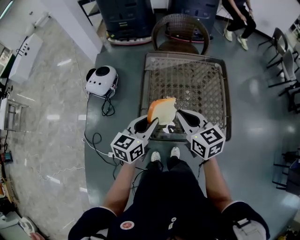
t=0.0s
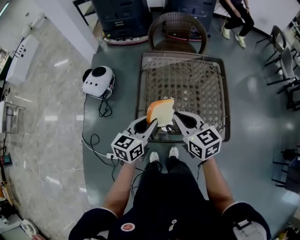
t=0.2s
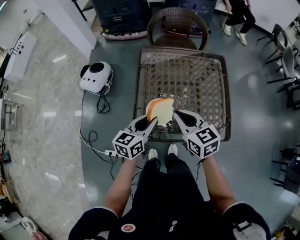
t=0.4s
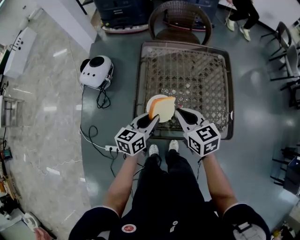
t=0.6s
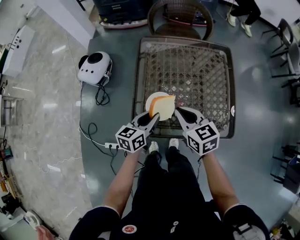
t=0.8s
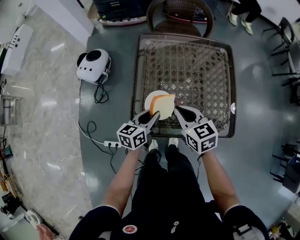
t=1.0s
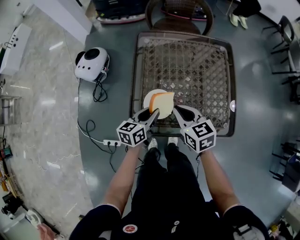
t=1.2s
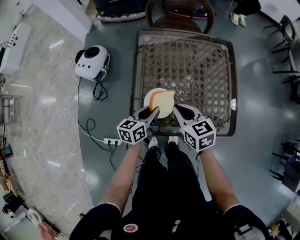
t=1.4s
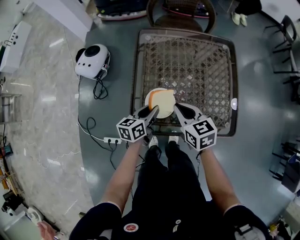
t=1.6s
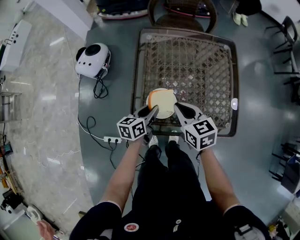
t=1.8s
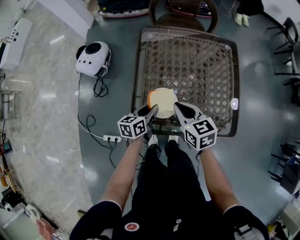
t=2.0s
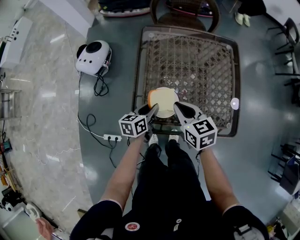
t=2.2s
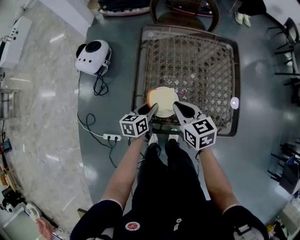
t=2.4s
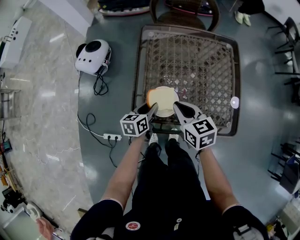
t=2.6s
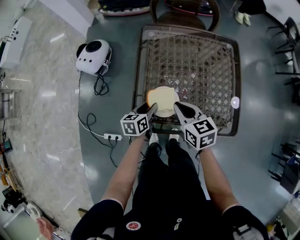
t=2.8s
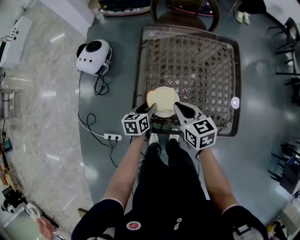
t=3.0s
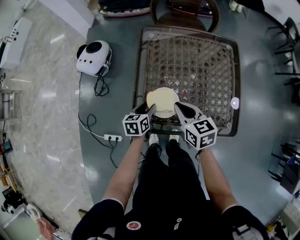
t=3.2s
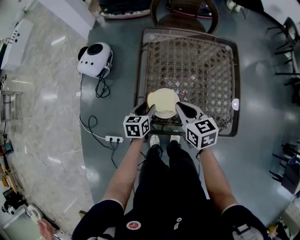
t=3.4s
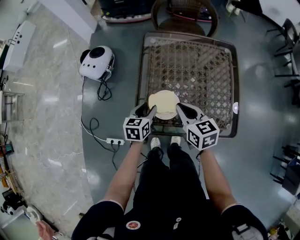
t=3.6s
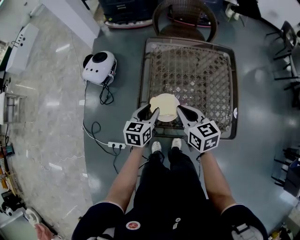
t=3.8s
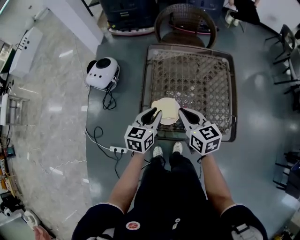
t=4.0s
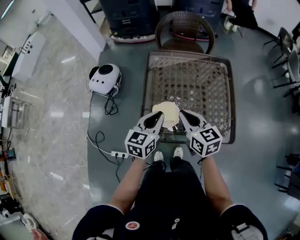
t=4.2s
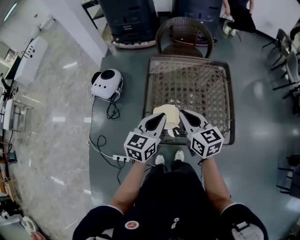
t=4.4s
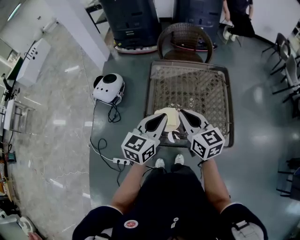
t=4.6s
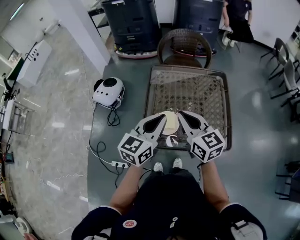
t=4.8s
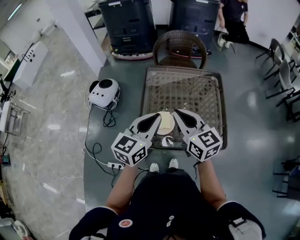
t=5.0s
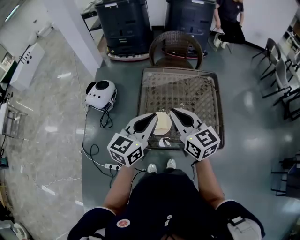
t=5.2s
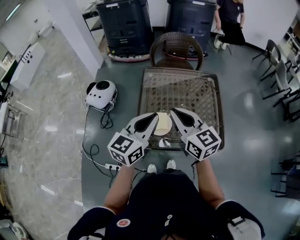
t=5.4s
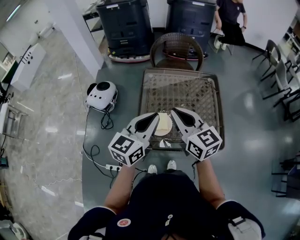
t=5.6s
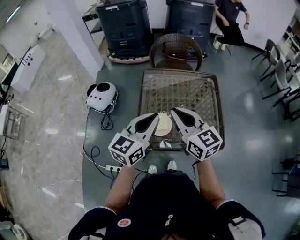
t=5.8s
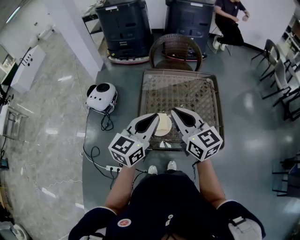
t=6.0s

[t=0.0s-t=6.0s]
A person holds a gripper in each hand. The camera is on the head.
t=0.0s to t=1.6s: The grippers both shift downward by roughly 15 cm. The left gripper turns by roughly 20 degrees.
t=1.6s to t=3.0s: The left gripper shifts about 5 cm downward, and opens up.
t=3.0s to t=4.4s: The right gripper is displaced upward by roughly 15 cm; the left gripper travels upward by roughly 25 cm, turns by approximately 30 degrees, and closes its fingers.
t=4.4s to t=6.0s: Both grippers move upward, some 10 cm.

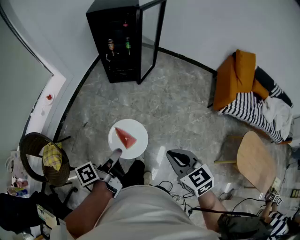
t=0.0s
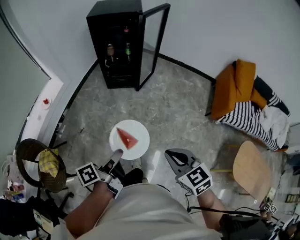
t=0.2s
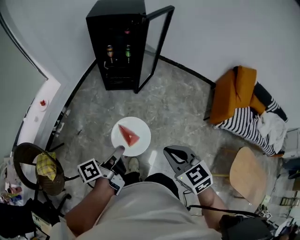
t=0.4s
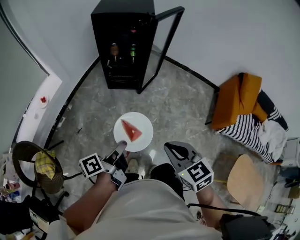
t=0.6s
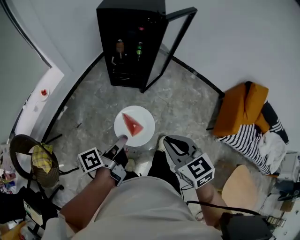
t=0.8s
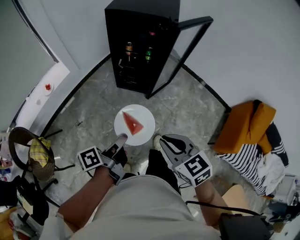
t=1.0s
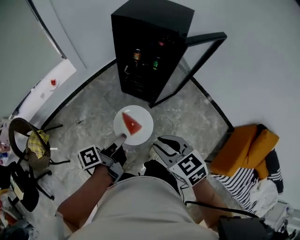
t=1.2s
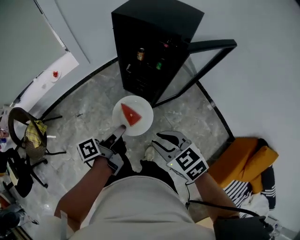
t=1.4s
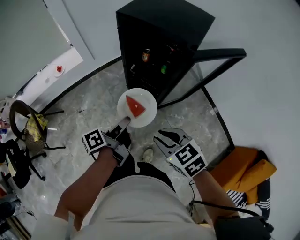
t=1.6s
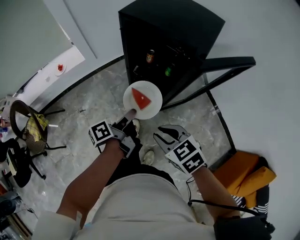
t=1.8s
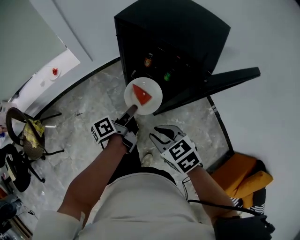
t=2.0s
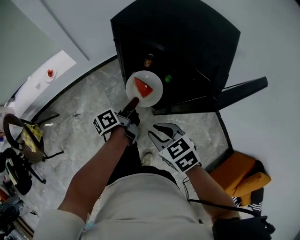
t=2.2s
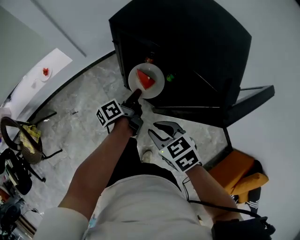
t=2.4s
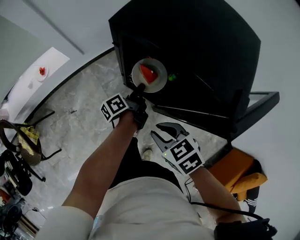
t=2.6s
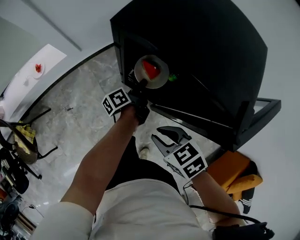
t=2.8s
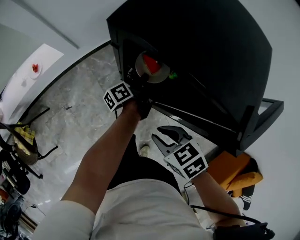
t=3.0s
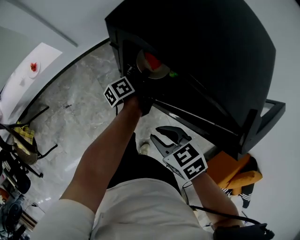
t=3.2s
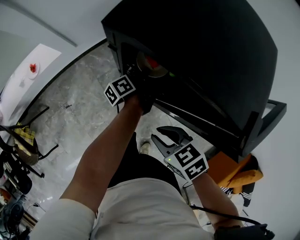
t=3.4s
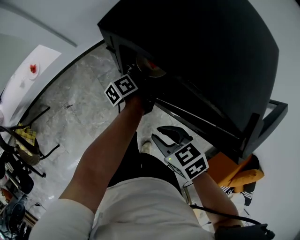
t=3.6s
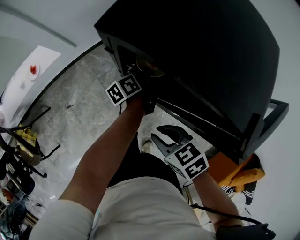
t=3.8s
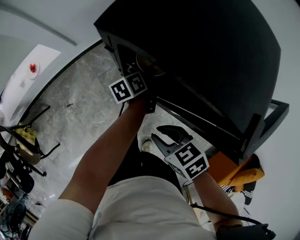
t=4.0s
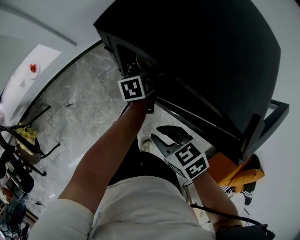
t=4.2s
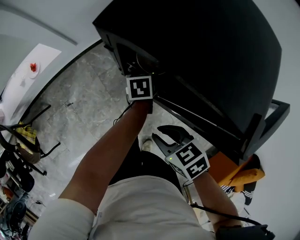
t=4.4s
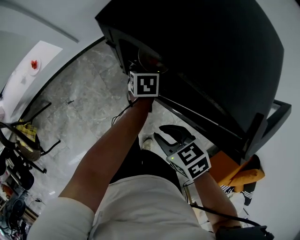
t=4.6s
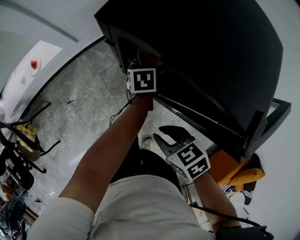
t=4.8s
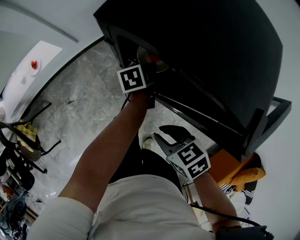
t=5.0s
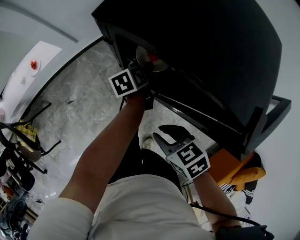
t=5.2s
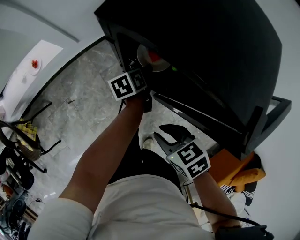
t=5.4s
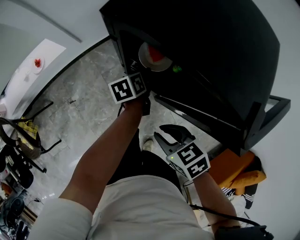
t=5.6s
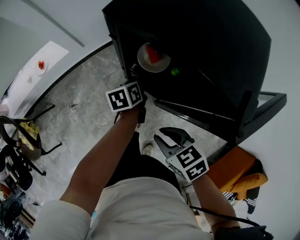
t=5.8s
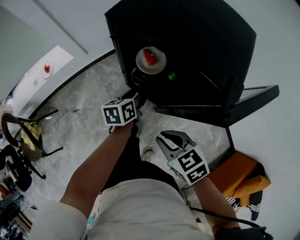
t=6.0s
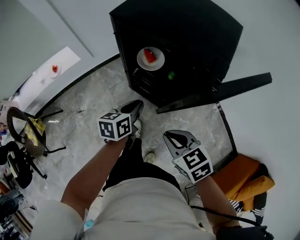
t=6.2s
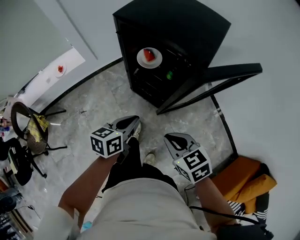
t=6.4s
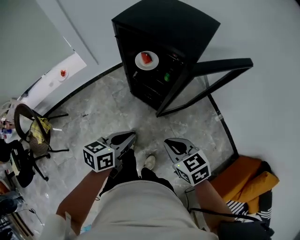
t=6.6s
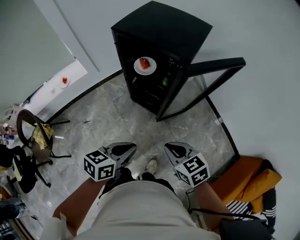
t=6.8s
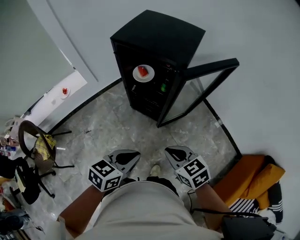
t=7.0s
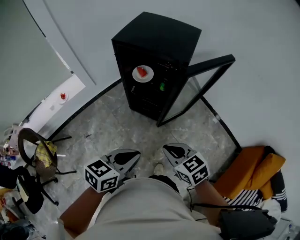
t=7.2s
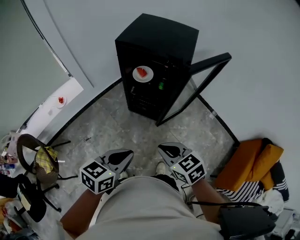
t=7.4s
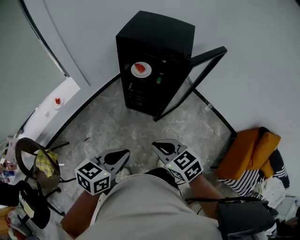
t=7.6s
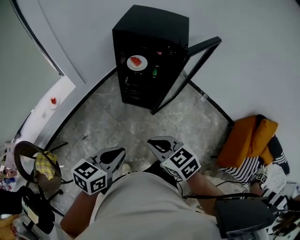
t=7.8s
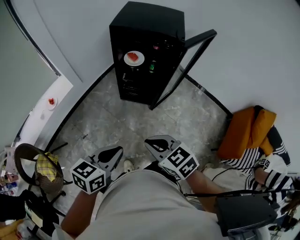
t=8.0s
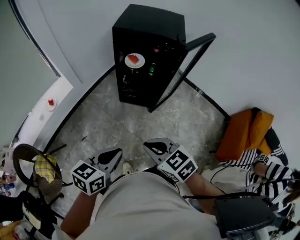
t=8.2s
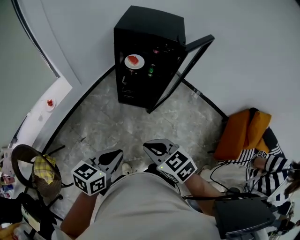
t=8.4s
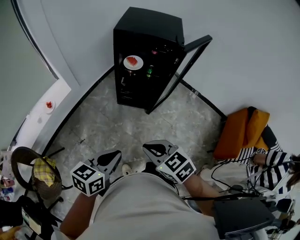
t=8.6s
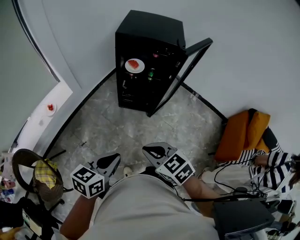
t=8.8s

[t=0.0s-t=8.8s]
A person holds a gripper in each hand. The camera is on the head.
t=0.0s to t=1.4s: The pair of grippers is taken about 40 cm. The right gripper rotates some 40 degrees, and opens; the left gripper rotates roughly 30 degrees.
t=1.4s to t=3.0s: Both grippers move forward and downward, about 40 cm. The right gripper swivels approximately 20 degrees.
t=3.0s to t=4.4s: The left gripper rotates around the line of its fingers by about 50 degrees, clockwise from behind, and opens.
t=4.4s to t=5.8s: The left gripper heads to the left, covering approximately 5 cm.
t=5.8s to t=7.4s: The left gripper shifts by approximately 50 cm, swivels roughly 50 degrees, and closes up; the right gripper shifts by about 25 cm, turns by roughly 20 degrees, and closes.
t=7.4s to t=8.8s: The grippers both shift to the left and backward by approximately 15 cm.

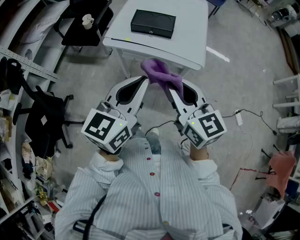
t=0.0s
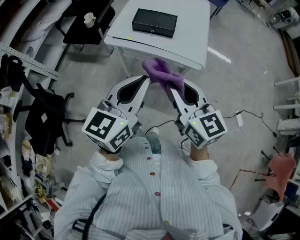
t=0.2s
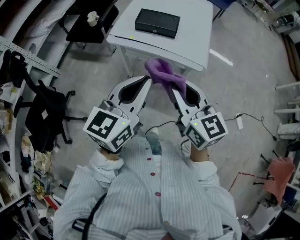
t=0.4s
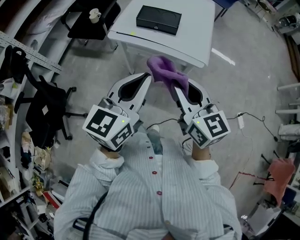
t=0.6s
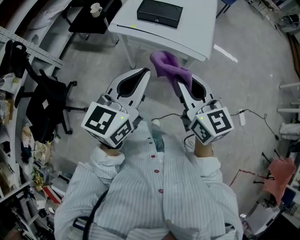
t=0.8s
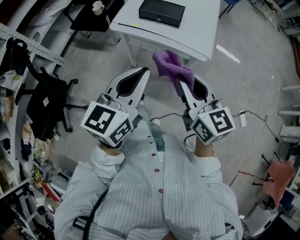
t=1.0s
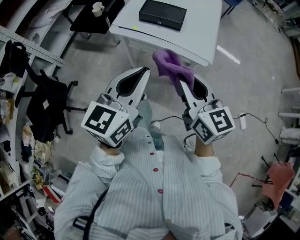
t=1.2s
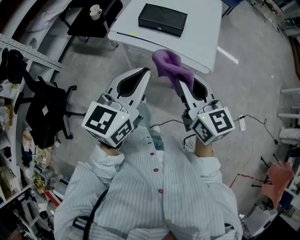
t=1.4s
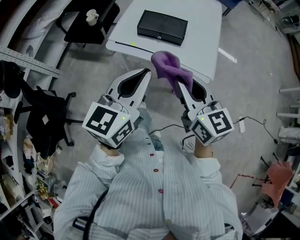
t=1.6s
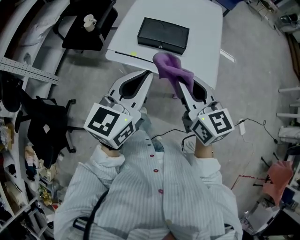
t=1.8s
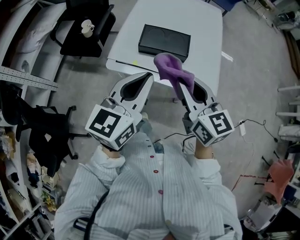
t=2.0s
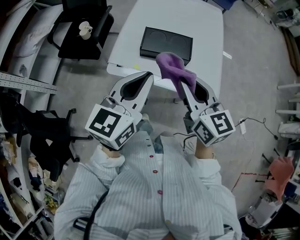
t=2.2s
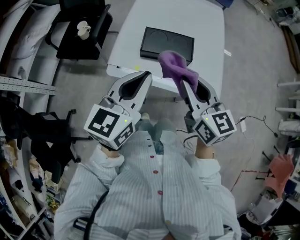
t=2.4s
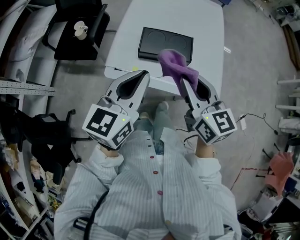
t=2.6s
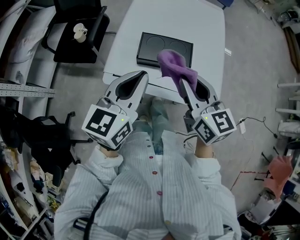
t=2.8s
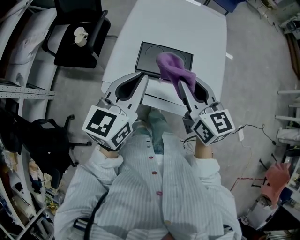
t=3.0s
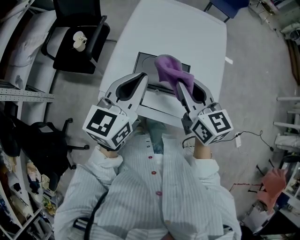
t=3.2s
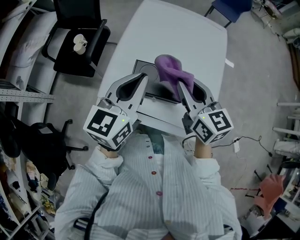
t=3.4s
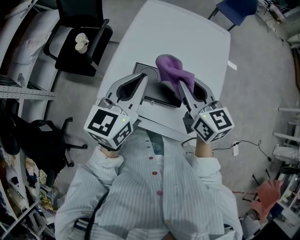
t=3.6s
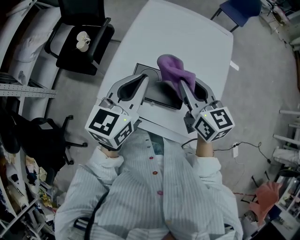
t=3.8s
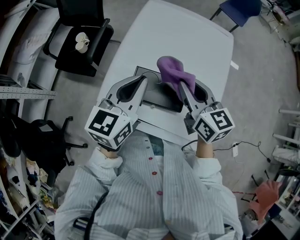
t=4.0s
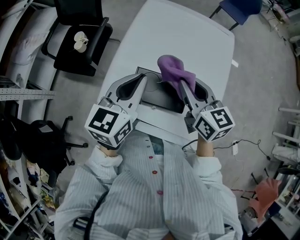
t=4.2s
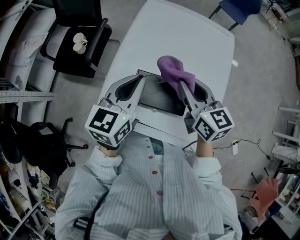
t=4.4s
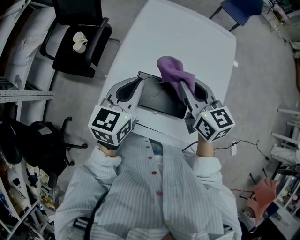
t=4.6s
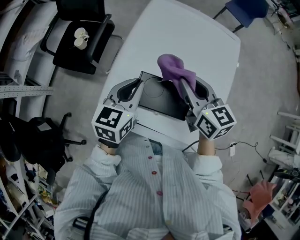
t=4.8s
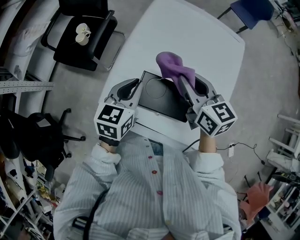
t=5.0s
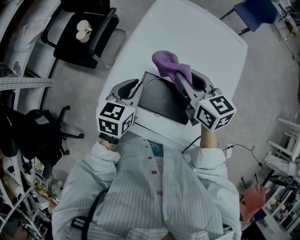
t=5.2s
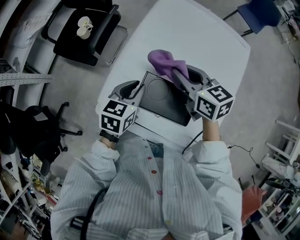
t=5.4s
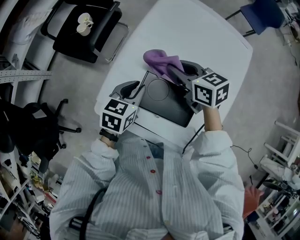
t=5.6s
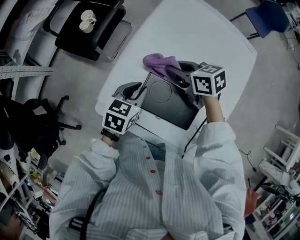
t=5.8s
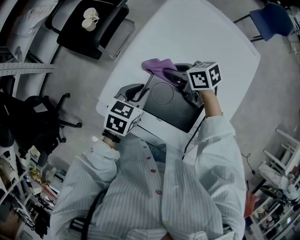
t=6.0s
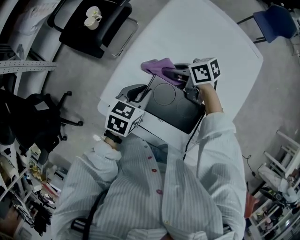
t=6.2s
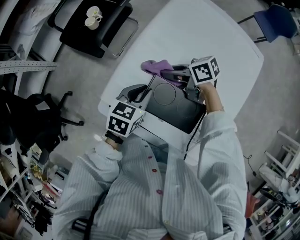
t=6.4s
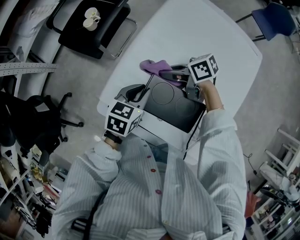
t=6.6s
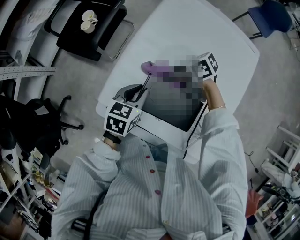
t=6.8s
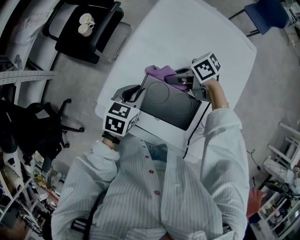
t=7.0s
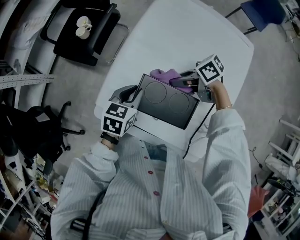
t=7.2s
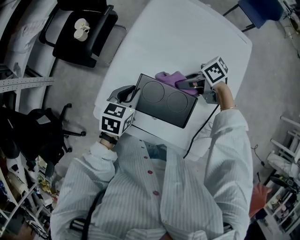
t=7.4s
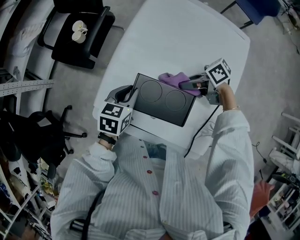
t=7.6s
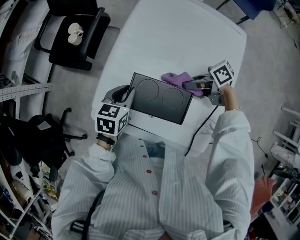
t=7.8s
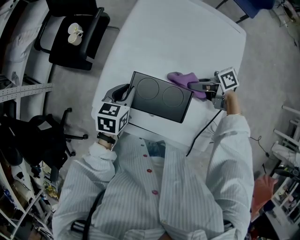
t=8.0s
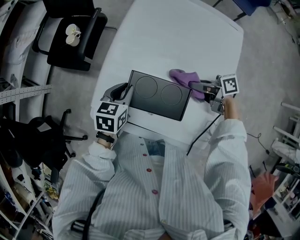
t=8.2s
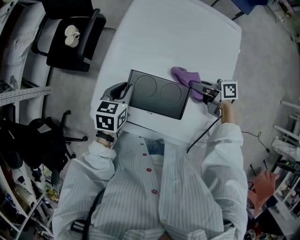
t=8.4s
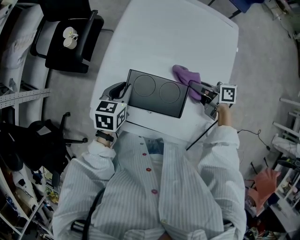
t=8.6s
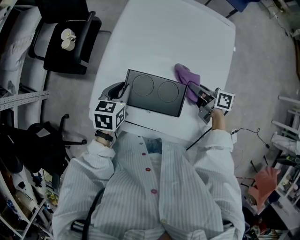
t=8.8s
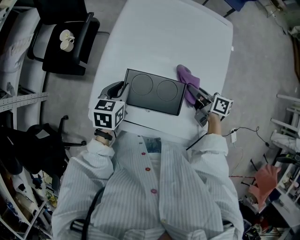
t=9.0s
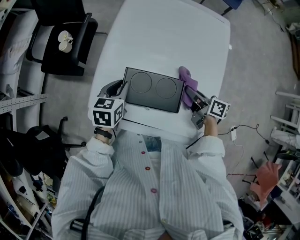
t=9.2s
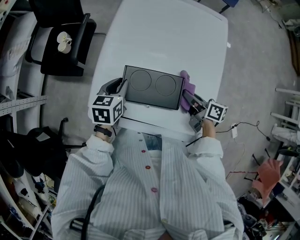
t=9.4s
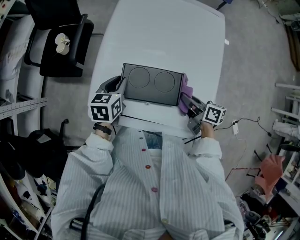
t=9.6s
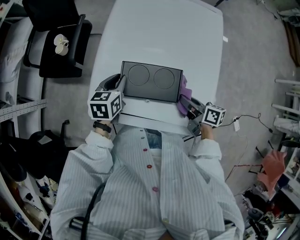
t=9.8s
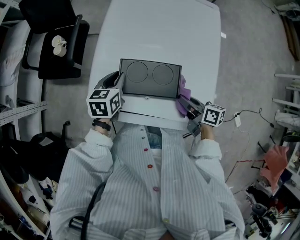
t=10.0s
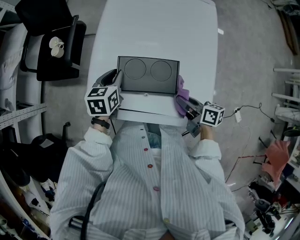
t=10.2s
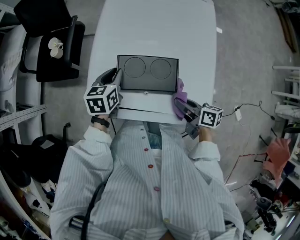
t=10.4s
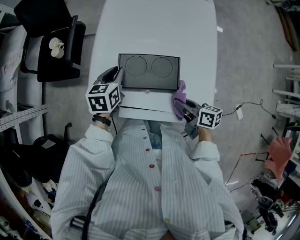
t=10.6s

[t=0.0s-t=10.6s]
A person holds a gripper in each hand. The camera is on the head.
t=0.0s to t=1.6s: The two grippers go about 10 cm forward.
t=1.6s to t=3.0s: The grippers both shift forward by approximately 25 cm.
t=3.0s to t=4.6s: Both grippers move forward, roughly 15 cm.
t=4.6s to t=6.0s: The right gripper is displaced downward, forward and to the left by some 20 cm, and changes its angle by roughly 50 degrees, while the left gripper goes about 15 cm downward, and rotates approximately 20 degrees.
t=6.0s to t=7.6s: The right gripper changes place by about 15 cm, and changes its angle by about 30 degrees.
t=7.6s to t=9.0s: The right gripper shifts by some 10 cm, and changes its angle by about 60 degrees.
t=9.0s to t=10.6s: The right gripper goes about 15 cm backward.
